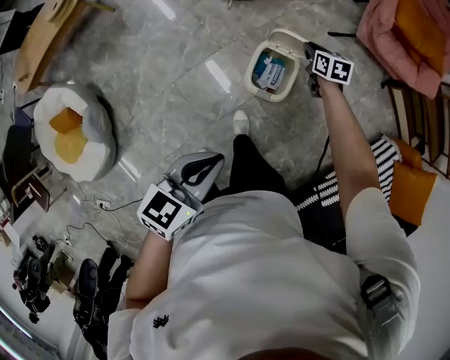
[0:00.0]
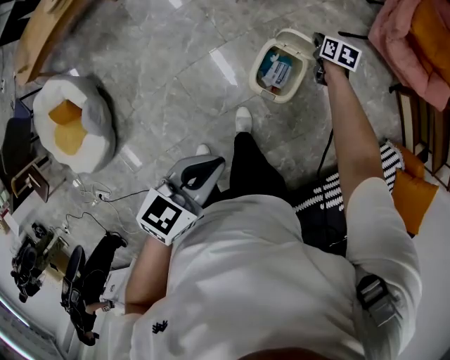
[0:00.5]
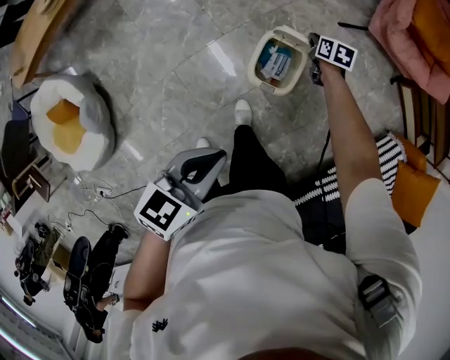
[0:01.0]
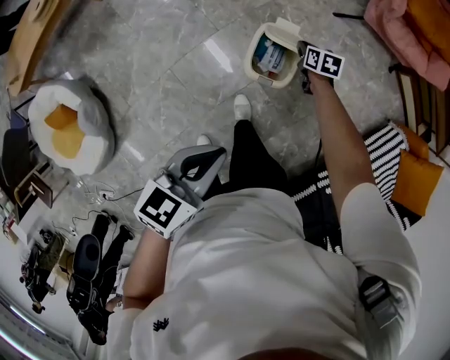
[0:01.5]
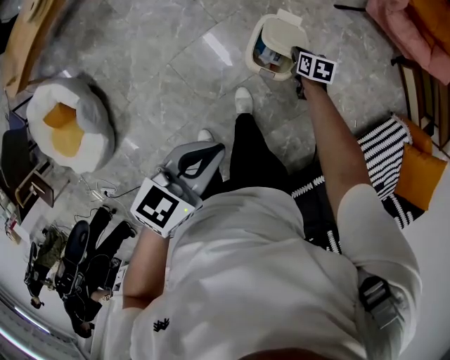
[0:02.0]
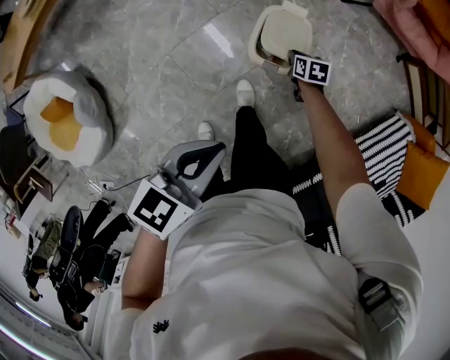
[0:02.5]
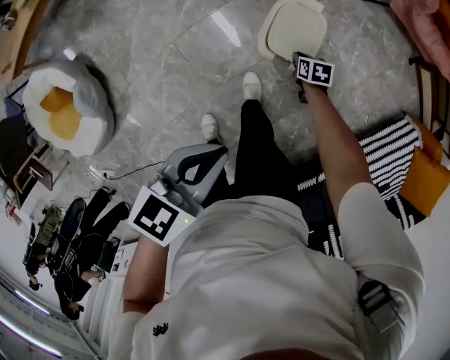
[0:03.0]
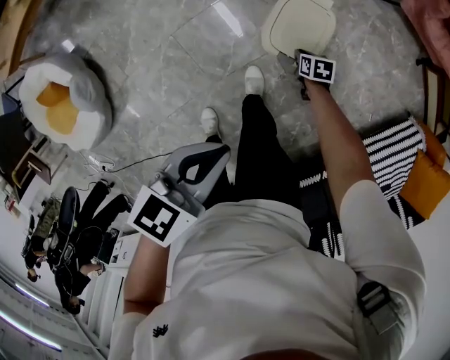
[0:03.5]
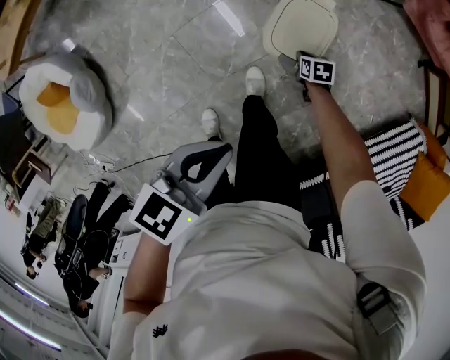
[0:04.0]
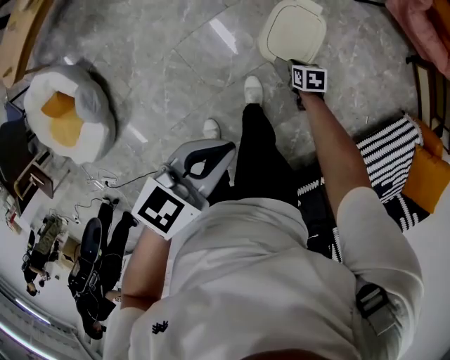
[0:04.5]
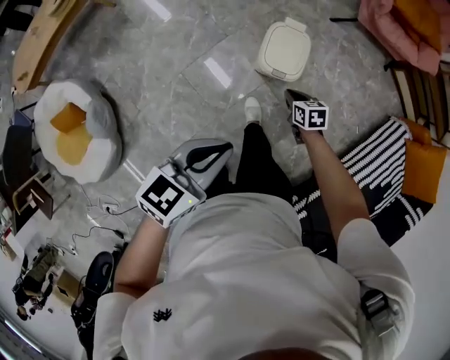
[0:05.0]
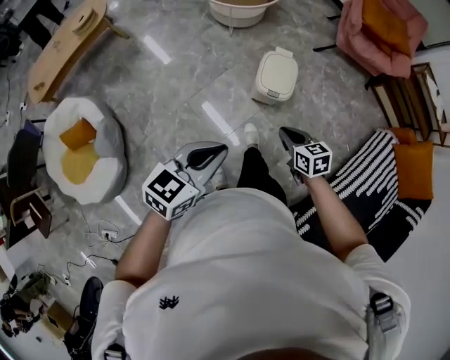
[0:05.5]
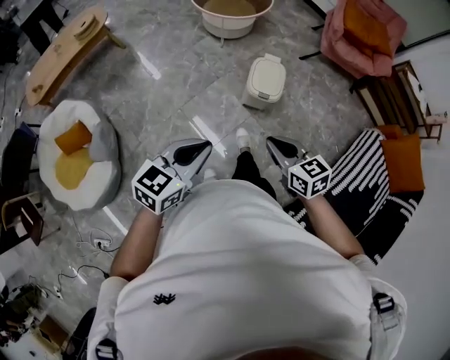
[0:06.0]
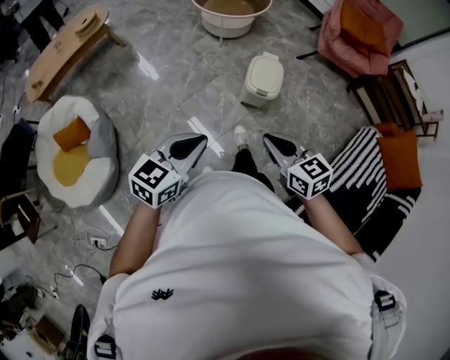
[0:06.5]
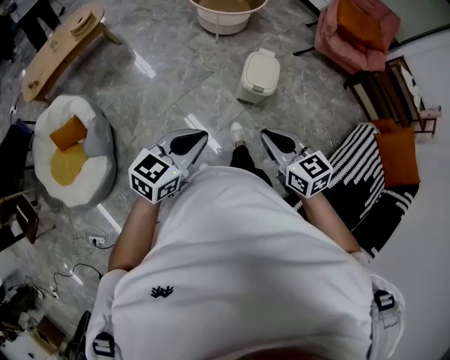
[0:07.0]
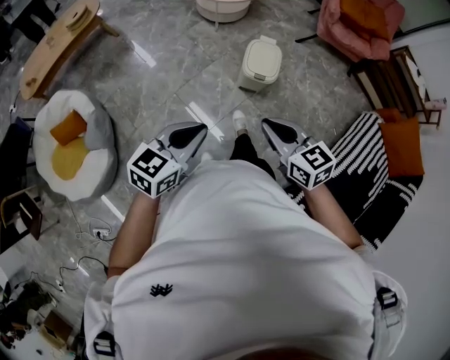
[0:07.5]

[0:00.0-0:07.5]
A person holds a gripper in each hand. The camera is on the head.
0:00.0 to 0:02.0: The right gripper travels downward and backward by about 15 cm.
0:02.0 to 0:04.0: The left gripper shifts approximately 5 cm downward, while the right gripper heads downward and backward, covering roughly 15 cm.
0:04.0 to 0:05.5: The left gripper shifts roughly 25 cm backward, upward and to the left, and swivels roughly 30 degrees. The right gripper goes about 50 cm upward and backward, and turns by approximately 30 degrees.
0:05.5 to 0:07.5: The right gripper heads upward and backward, covering roughly 20 cm, and rotates roughly 20 degrees. The left gripper is displaced backward by some 5 cm.

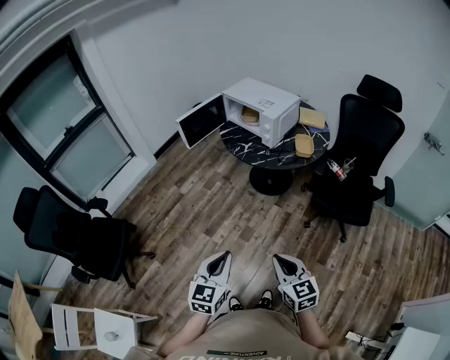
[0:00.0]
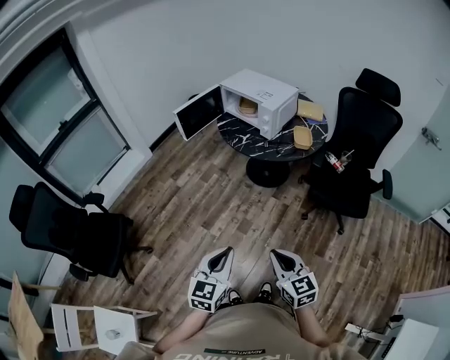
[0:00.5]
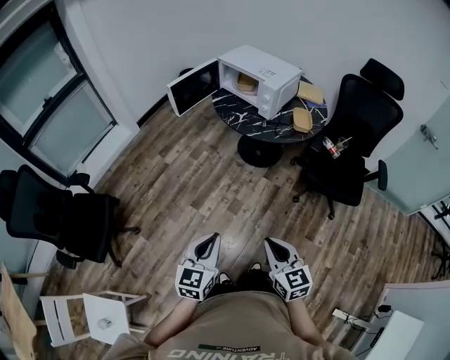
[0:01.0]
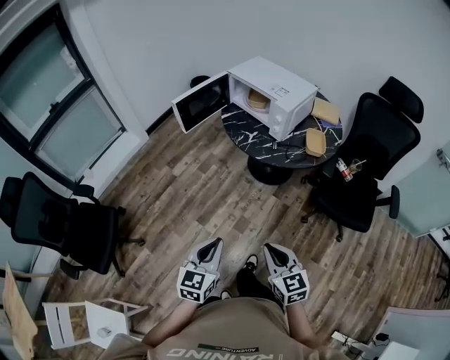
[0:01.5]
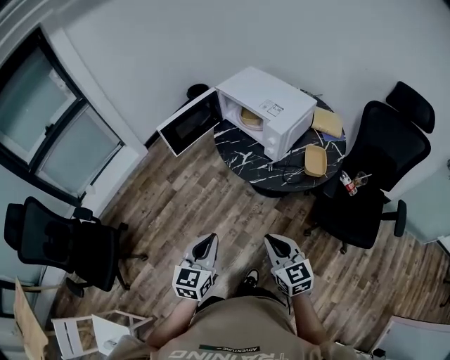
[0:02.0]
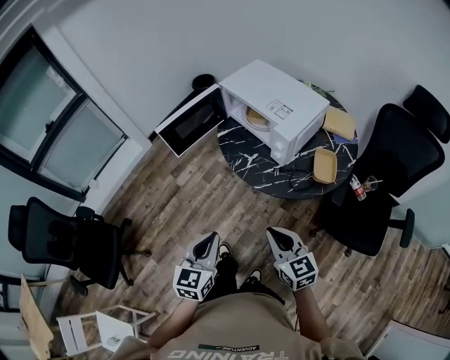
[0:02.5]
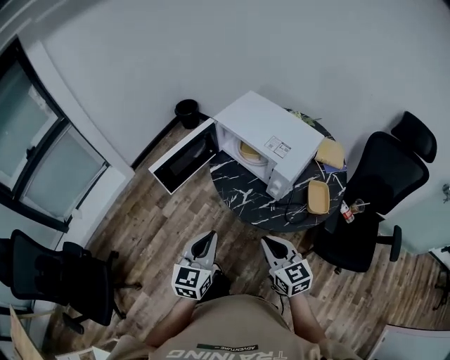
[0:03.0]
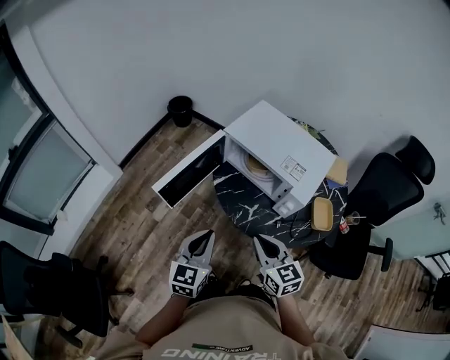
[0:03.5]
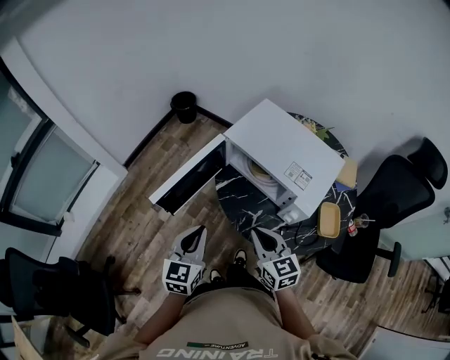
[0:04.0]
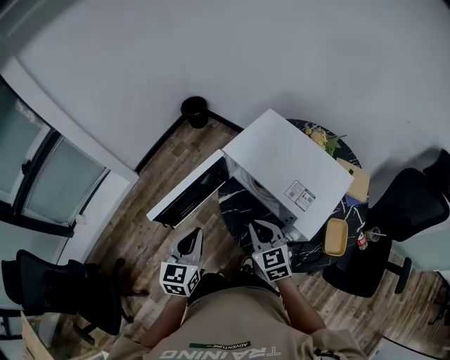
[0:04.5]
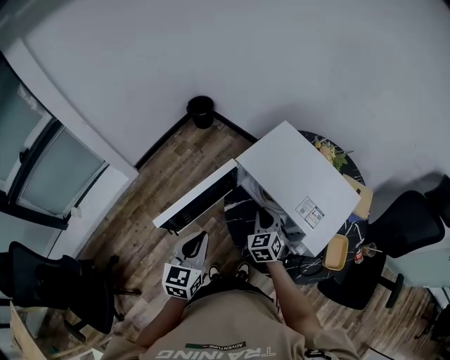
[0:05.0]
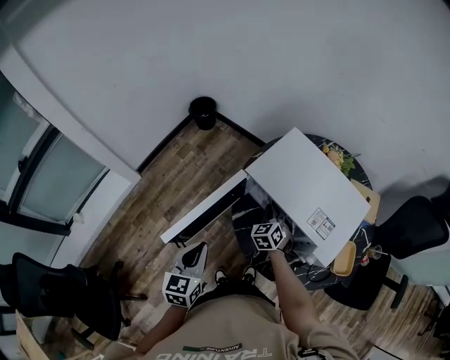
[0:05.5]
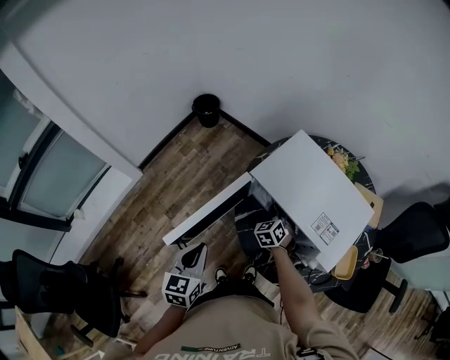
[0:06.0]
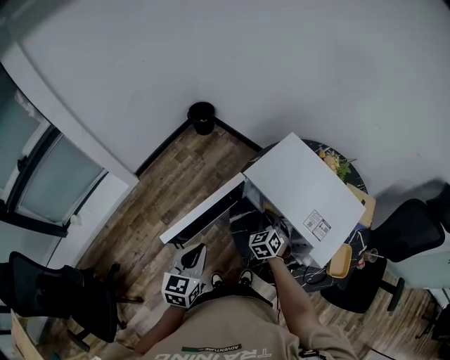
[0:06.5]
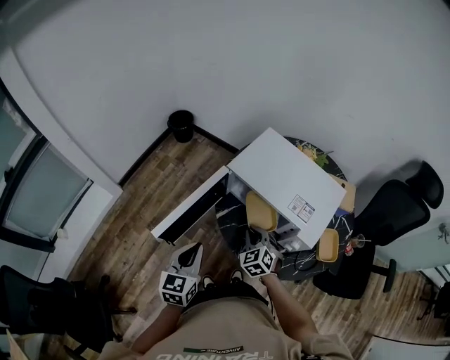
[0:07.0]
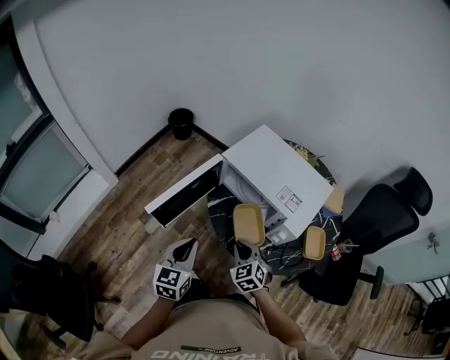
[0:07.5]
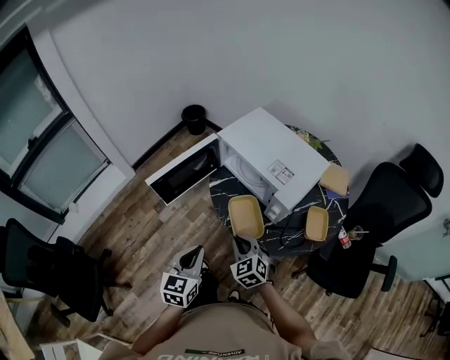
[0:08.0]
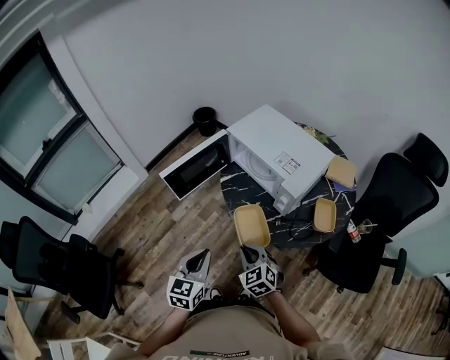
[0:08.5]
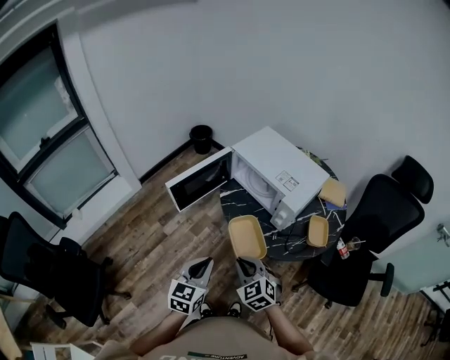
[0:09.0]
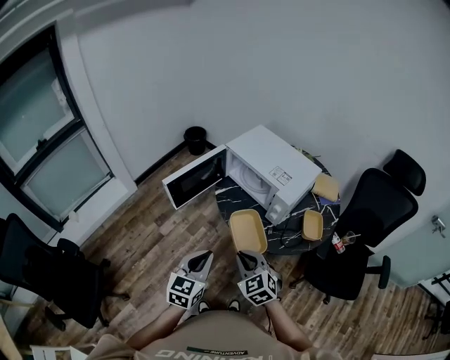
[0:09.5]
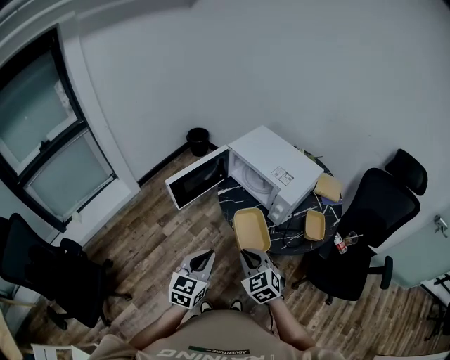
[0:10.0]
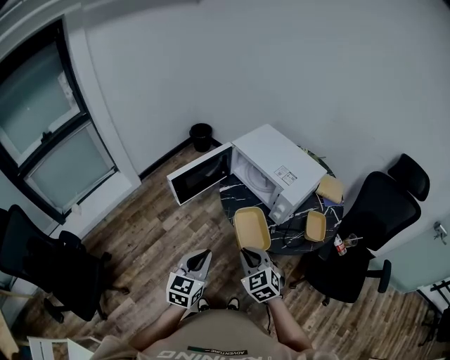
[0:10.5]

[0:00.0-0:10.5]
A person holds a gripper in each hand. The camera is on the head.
0:00.0 to 0:02.0: Both grippers travel together forward, roughly 30 cm.
0:02.0 to 0:04.0: Both grippers move forward, roughly 35 cm.
0:04.0 to 0:06.5: The left gripper travels forward and to the left by some 10 cm. The right gripper travels forward and downward by approximately 30 cm, and turns by roughly 40 degrees.
0:06.5 to 0:08.5: The right gripper moves backward, about 40 cm, and swivels some 20 degrees. The left gripper moves backward and to the right, roughly 30 cm.
0:08.5 to 0:10.5: The right gripper heads upward, covering approximately 5 cm.

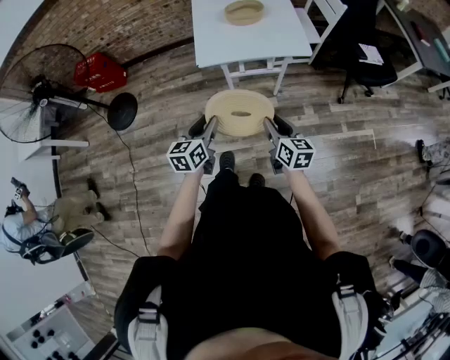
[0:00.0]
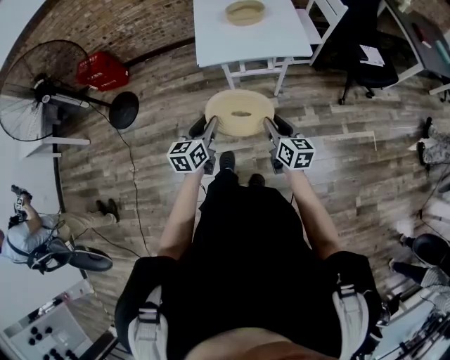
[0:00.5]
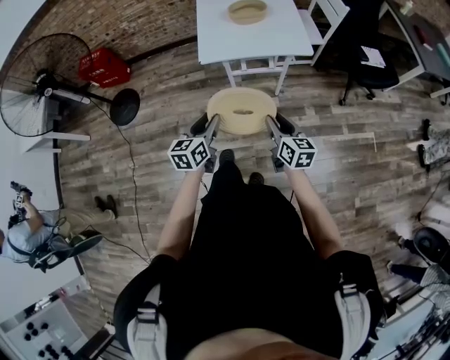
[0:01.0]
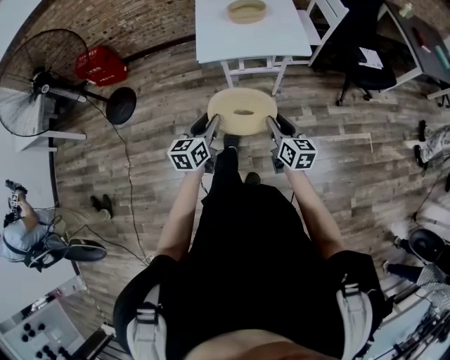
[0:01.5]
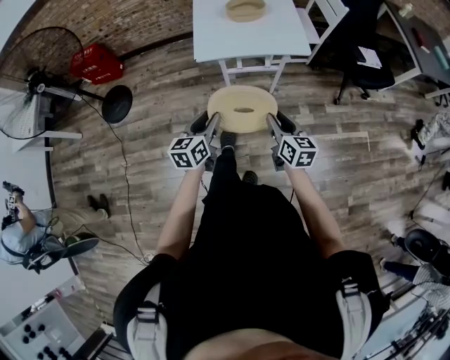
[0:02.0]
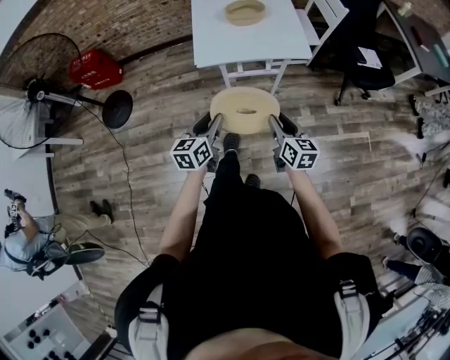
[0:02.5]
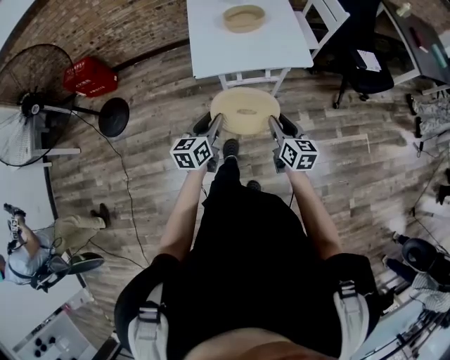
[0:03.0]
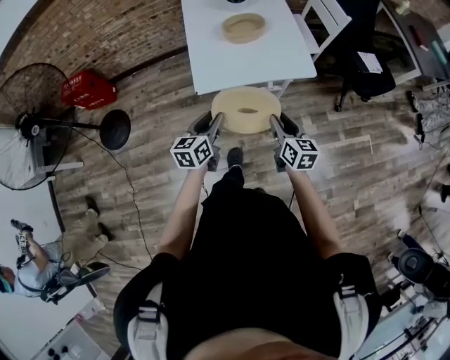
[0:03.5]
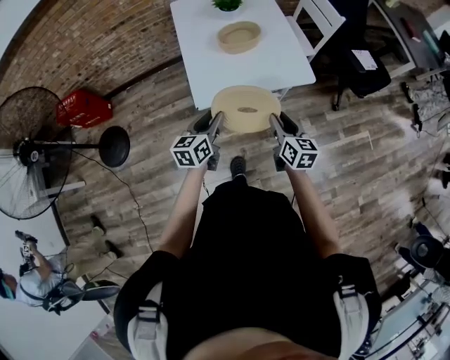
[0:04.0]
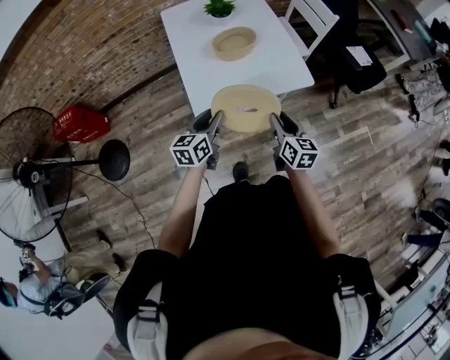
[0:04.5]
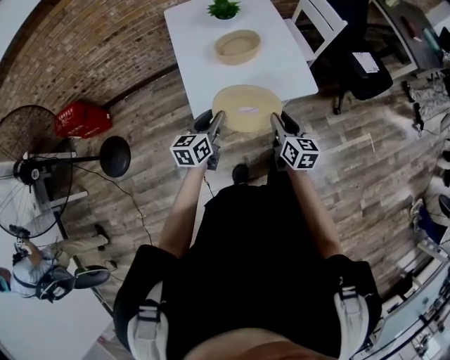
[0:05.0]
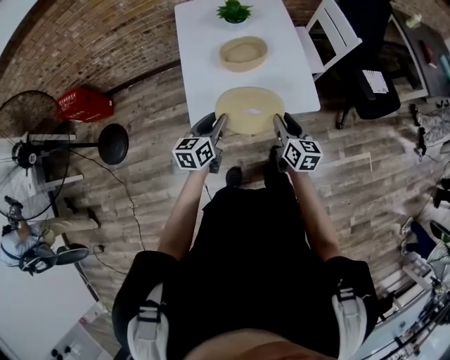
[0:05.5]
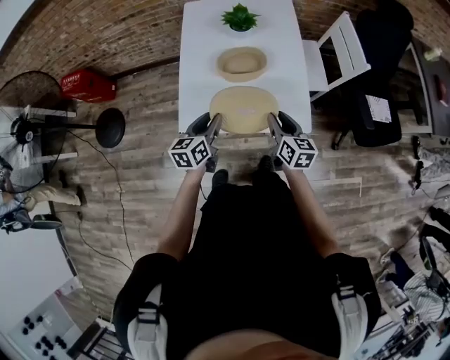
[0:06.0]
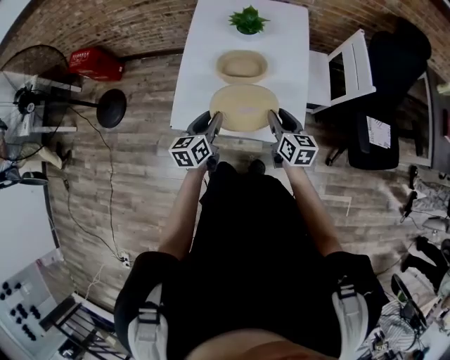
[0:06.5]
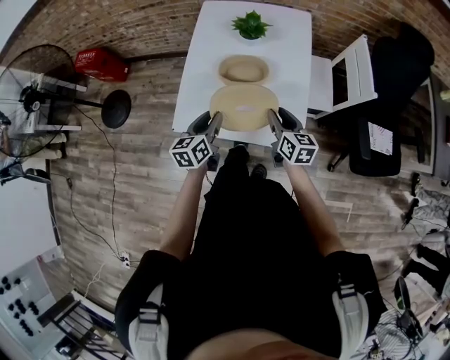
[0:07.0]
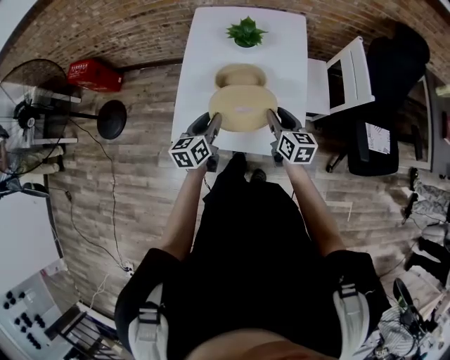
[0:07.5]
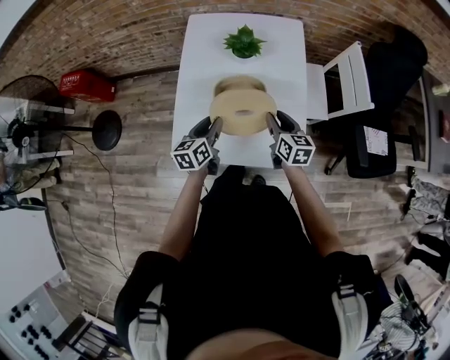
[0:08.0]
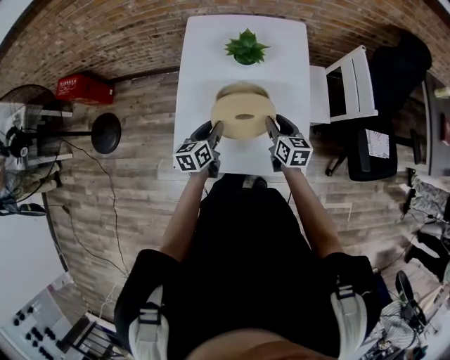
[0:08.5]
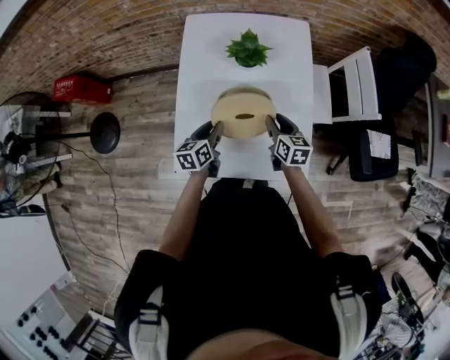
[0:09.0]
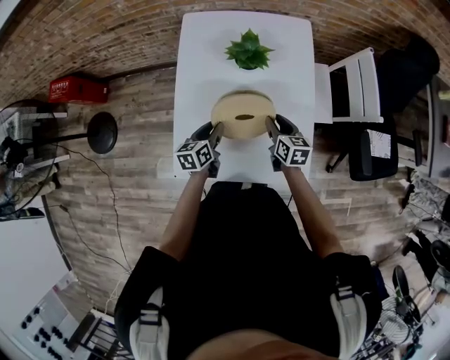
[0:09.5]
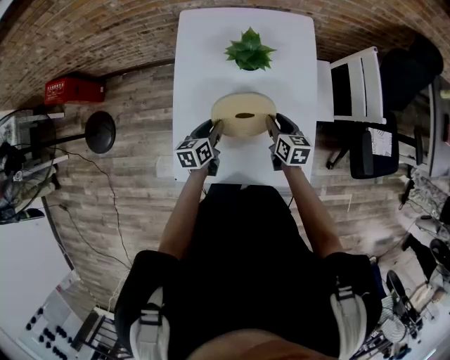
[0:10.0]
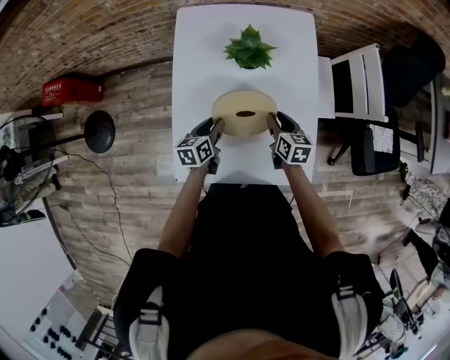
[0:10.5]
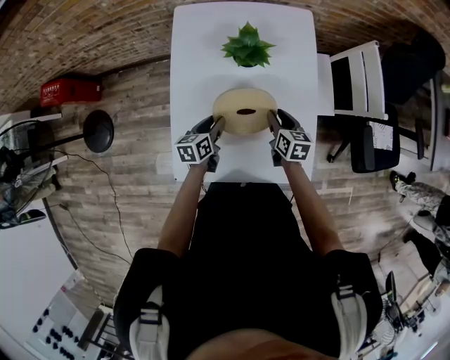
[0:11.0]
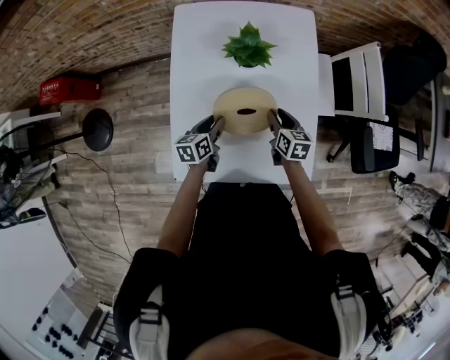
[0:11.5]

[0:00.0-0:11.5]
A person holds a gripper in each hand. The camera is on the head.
0:00.0 to 0:02.0: The grippers make only small movements.
0:02.0 to 0:04.0: Both grippers travel together forward, approximately 25 cm.
0:04.0 to 0:06.0: Both grippers travel together forward, roughly 20 cm.
0:06.0 to 0:07.5: The right gripper heads forward, covering about 10 cm, while the left gripper shifts approximately 5 cm forward.
0:07.5 to 0:09.5: The grippers both shift forward and downward by roughly 15 cm.
0:09.5 to 0:11.5: The left gripper ends up roughly 5 cm from where it was; the right gripper shifts by roughly 5 cm.
